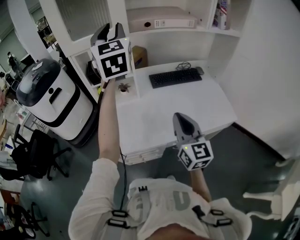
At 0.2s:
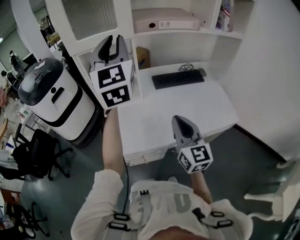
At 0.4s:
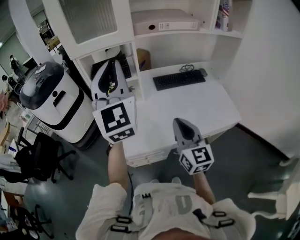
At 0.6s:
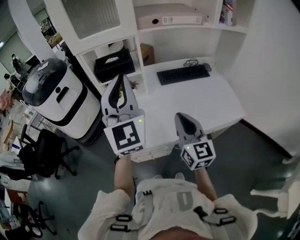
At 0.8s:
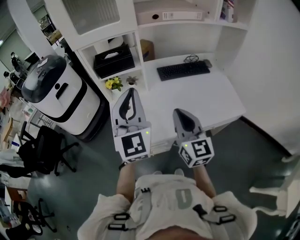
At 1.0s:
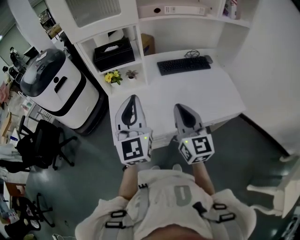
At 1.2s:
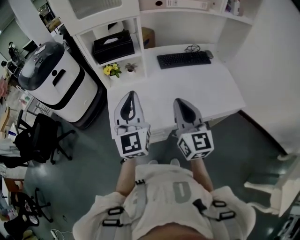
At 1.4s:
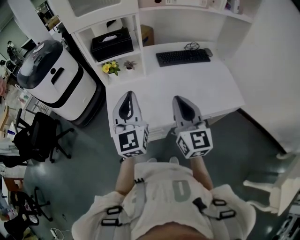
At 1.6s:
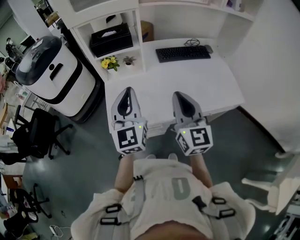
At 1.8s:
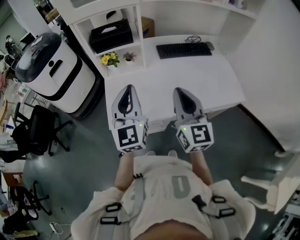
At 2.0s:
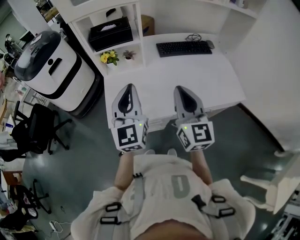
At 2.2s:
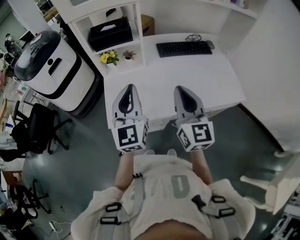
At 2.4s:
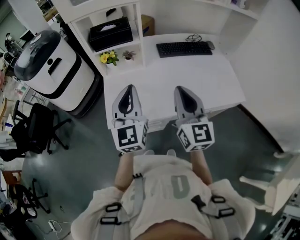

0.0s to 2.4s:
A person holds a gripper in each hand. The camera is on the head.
0.0s to 1.2s: The left gripper is displaced downward and backward by approximately 30 cm, and closes up.
1.2s to 2.4s: The grippers make only small movements.

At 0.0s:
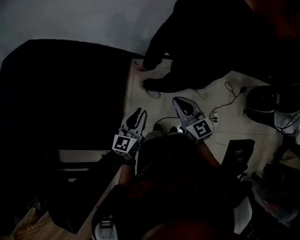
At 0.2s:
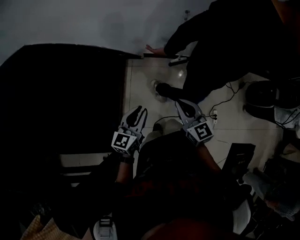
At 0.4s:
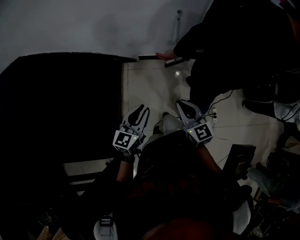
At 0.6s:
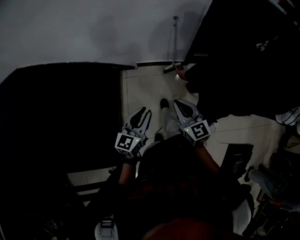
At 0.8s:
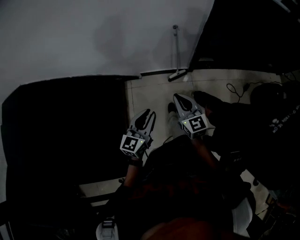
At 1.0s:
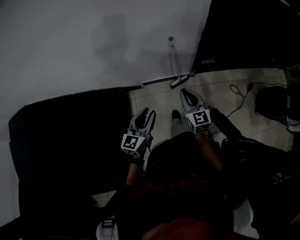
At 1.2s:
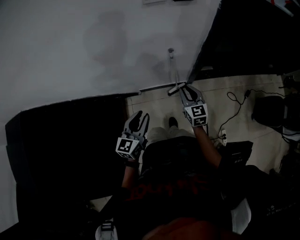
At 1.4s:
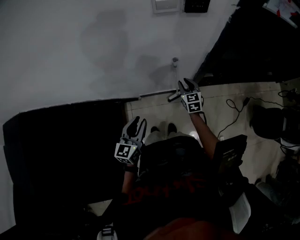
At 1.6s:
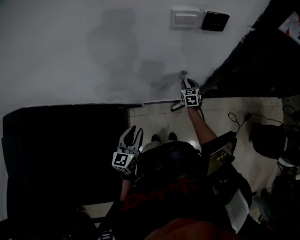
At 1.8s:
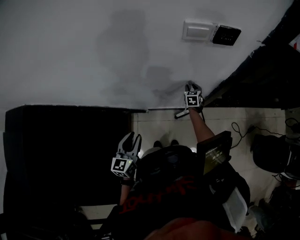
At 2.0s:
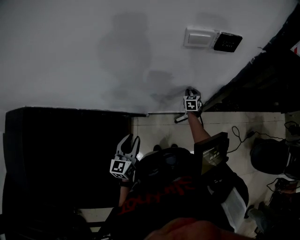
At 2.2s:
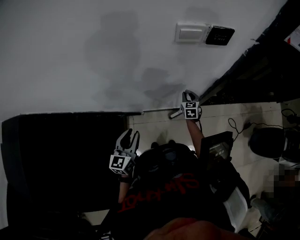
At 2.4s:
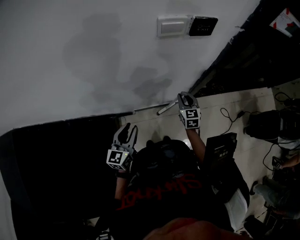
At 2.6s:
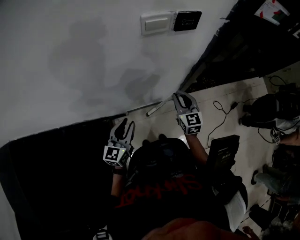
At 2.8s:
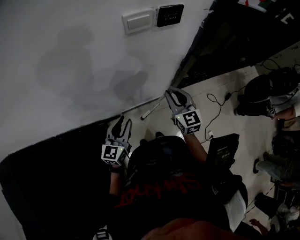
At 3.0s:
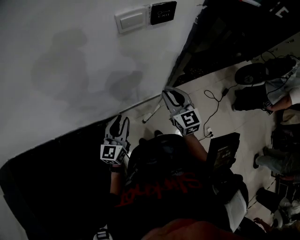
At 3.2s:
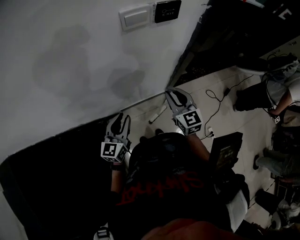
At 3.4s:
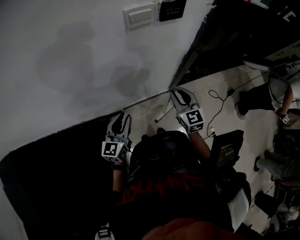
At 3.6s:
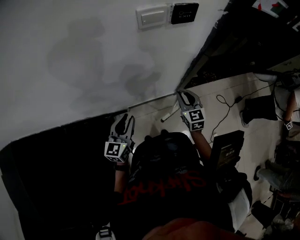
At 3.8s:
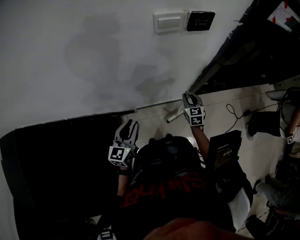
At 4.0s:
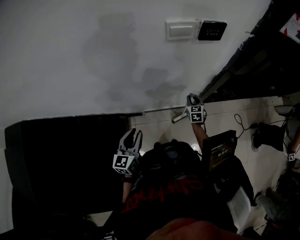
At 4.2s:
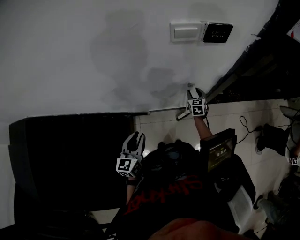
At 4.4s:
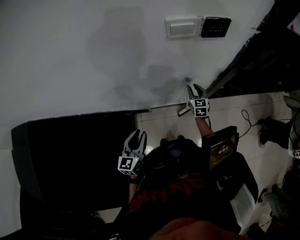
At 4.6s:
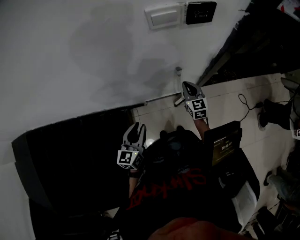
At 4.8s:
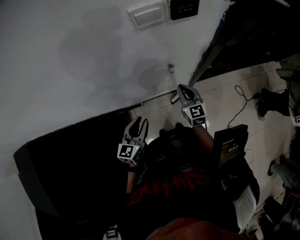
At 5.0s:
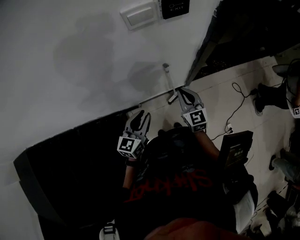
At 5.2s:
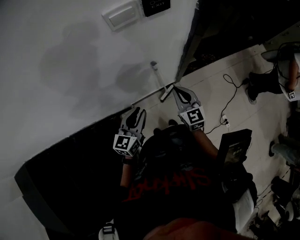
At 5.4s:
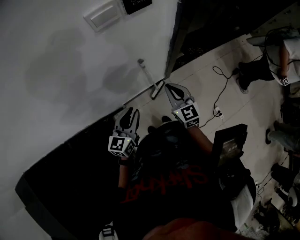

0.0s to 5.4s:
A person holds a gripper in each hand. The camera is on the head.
0.0s to 1.4s: Both grippers are carried forward, some 50 cm. The right gripper turns by about 30 degrees, and opens up.
1.4s to 2.8s: The left gripper is displaced forward by roughly 10 cm; the right gripper goes about 15 cm upward.
2.8s to 4.0s: The right gripper shifts about 25 cm downward, and swivels some 20 degrees. The left gripper heads backward, covering about 5 cm.
4.0s to 5.4s: The left gripper shifts approximately 10 cm to the right and forward, and rotates roughly 30 degrees. The right gripper shifts about 20 cm upward and backward, changes its angle by about 20 degrees, and closes up.

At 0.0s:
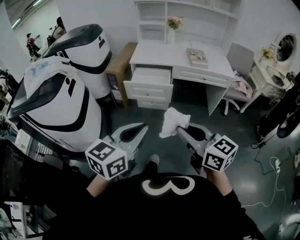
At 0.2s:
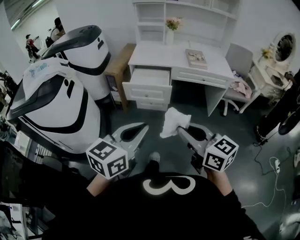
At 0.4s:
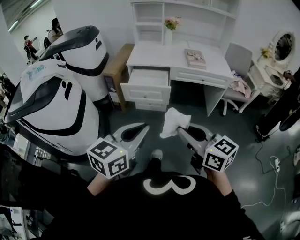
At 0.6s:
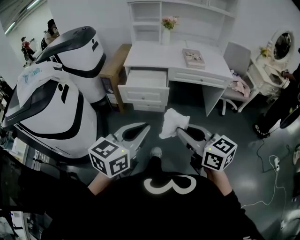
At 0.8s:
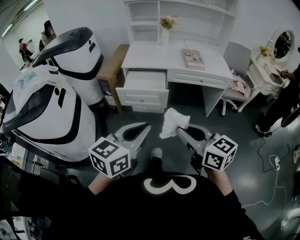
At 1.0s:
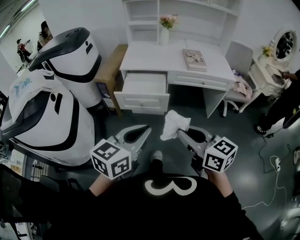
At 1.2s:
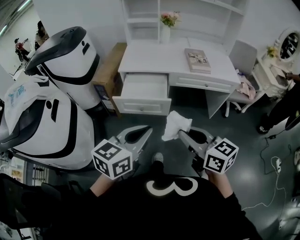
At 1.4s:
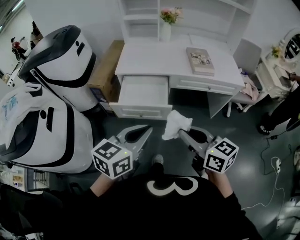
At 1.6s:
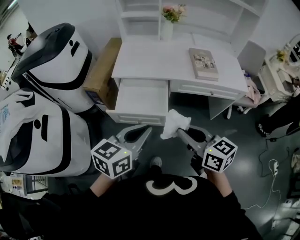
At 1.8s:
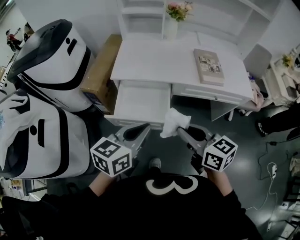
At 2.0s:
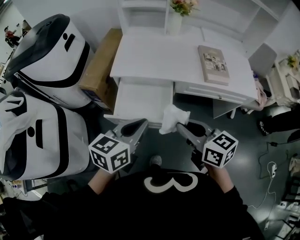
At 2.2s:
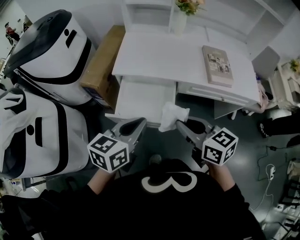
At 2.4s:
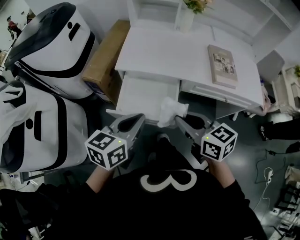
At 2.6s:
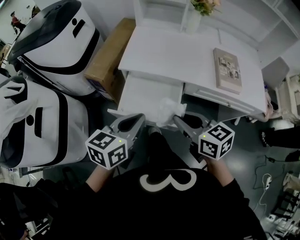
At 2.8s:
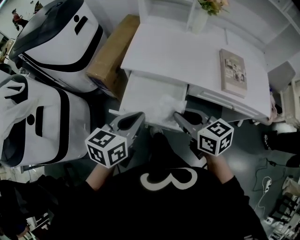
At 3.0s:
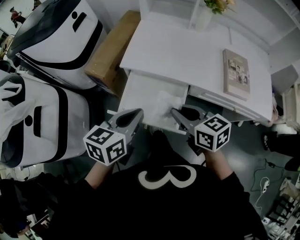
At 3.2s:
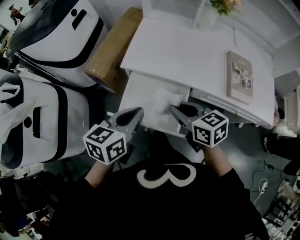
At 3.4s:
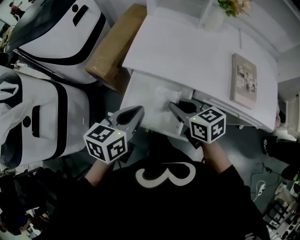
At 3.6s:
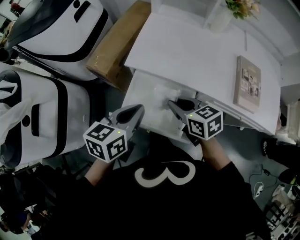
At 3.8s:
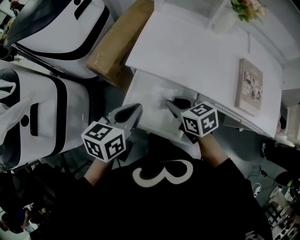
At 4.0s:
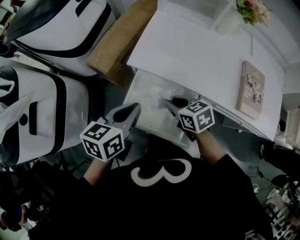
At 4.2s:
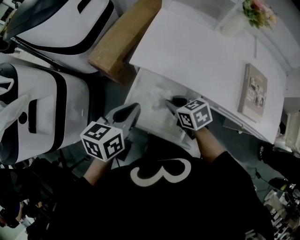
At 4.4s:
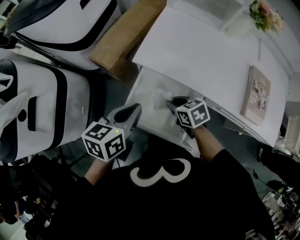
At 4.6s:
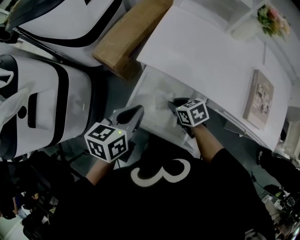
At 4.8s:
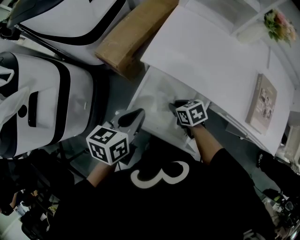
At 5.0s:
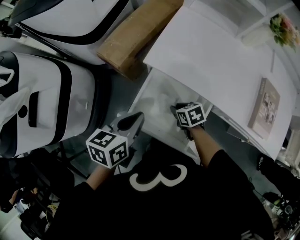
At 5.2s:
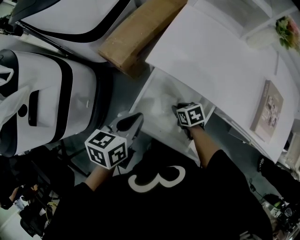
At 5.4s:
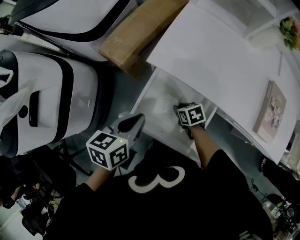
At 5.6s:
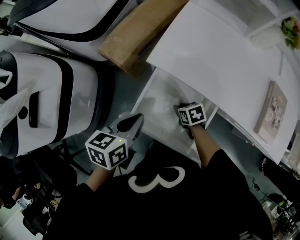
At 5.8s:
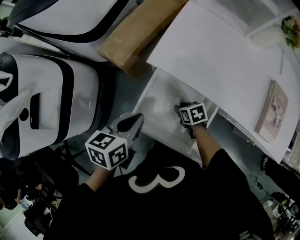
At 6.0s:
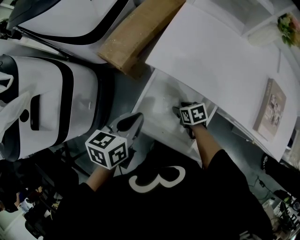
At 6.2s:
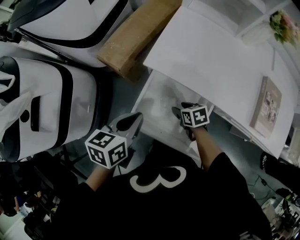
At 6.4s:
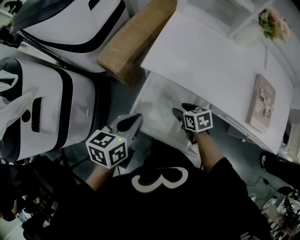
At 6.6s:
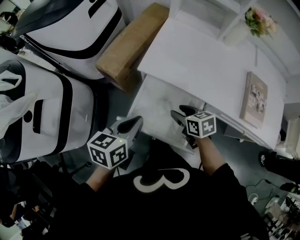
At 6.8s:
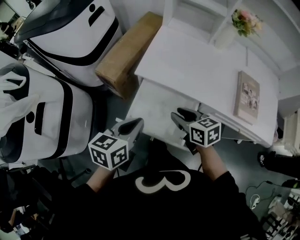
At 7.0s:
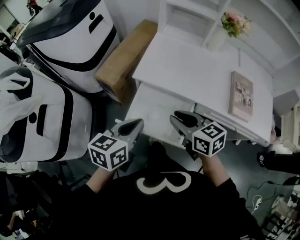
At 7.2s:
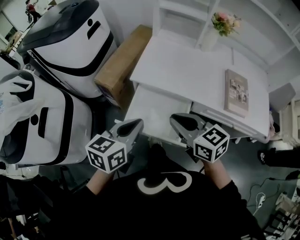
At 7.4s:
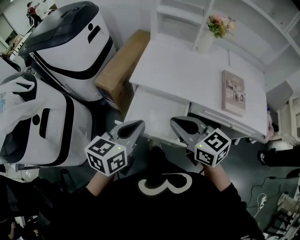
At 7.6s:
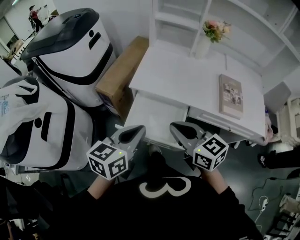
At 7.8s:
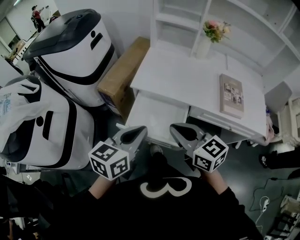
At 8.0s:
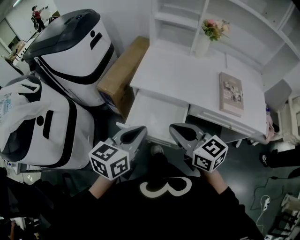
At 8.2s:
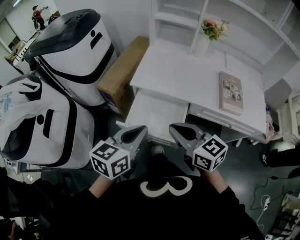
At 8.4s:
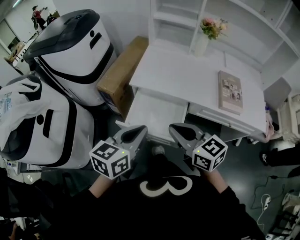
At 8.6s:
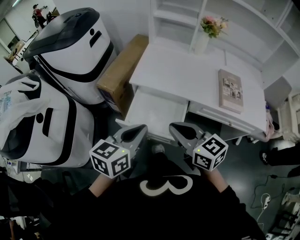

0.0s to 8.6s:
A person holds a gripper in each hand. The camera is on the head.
0.0s to 1.4s: Both grippers travel together forward, roughly 25 cm.
1.4s to 2.8s: Both grippers travel together forward, some 25 cm.
2.8s to 4.4s: The left gripper travels forward and downward by about 15 cm, while the right gripper is displaced downward and forward by about 25 cm, and changes its angle by roughly 30 degrees.
4.4s to 5.8s: The left gripper heads downward, covering approximately 5 cm. The right gripper shifts some 15 cm downward.
5.8s to 7.2s: The right gripper travels upward by some 35 cm, tilts its fingers approximately 40 degrees upward, and opens and closes again. The left gripper shifts some 15 cm upward and backward, and changes its angle by some 20 degrees.
7.2s to 8.6s: The two grippers go approximately 5 cm backward.

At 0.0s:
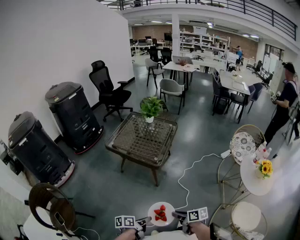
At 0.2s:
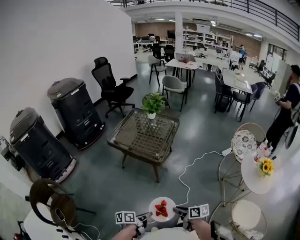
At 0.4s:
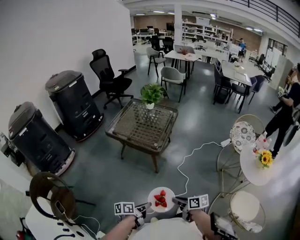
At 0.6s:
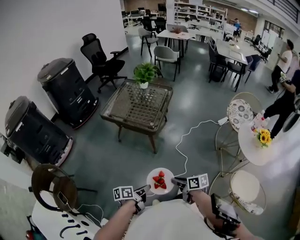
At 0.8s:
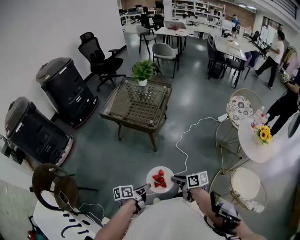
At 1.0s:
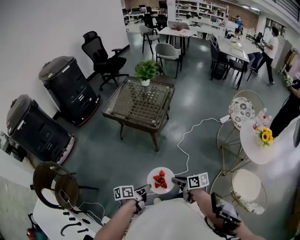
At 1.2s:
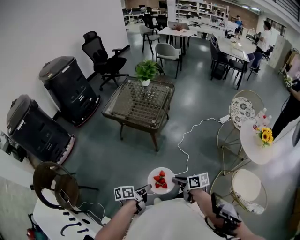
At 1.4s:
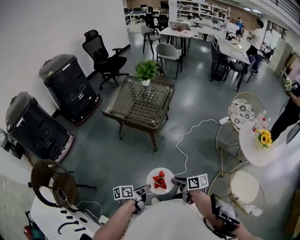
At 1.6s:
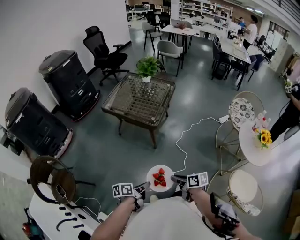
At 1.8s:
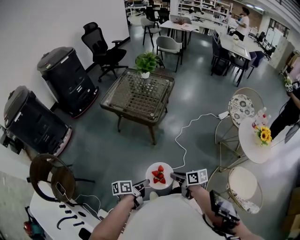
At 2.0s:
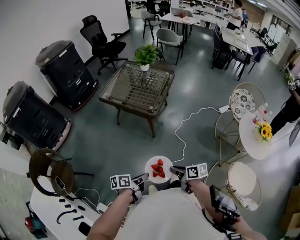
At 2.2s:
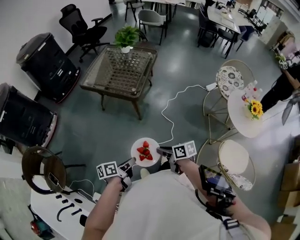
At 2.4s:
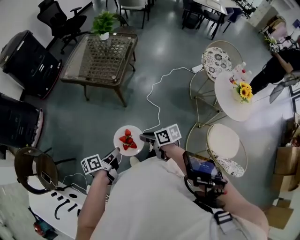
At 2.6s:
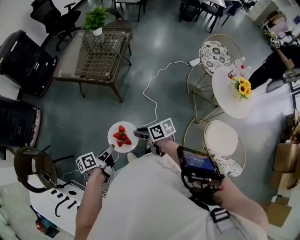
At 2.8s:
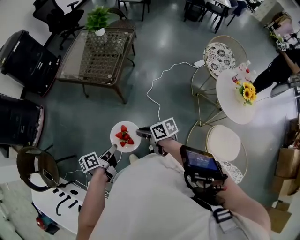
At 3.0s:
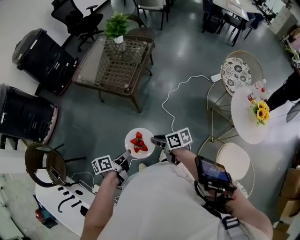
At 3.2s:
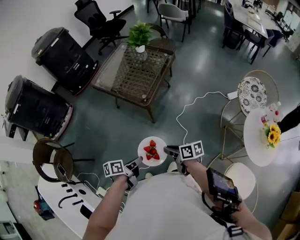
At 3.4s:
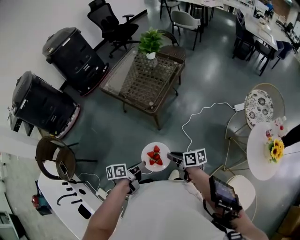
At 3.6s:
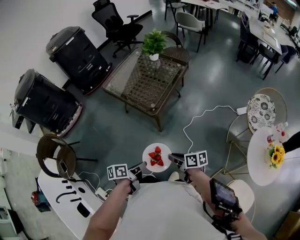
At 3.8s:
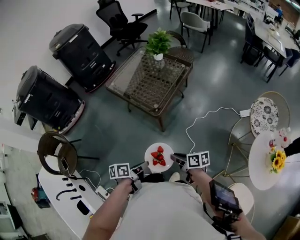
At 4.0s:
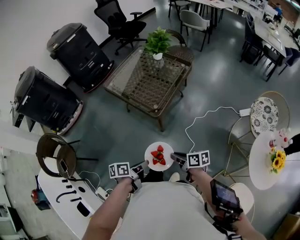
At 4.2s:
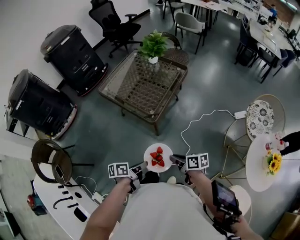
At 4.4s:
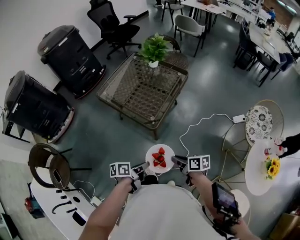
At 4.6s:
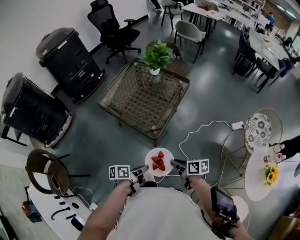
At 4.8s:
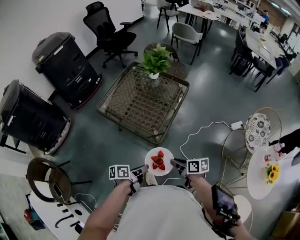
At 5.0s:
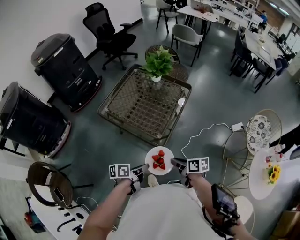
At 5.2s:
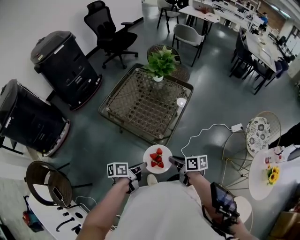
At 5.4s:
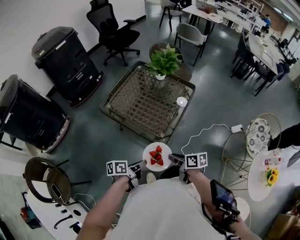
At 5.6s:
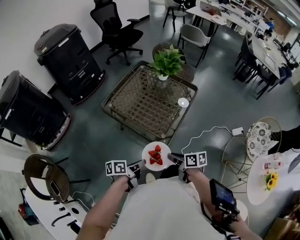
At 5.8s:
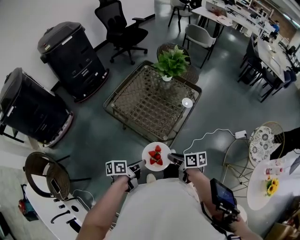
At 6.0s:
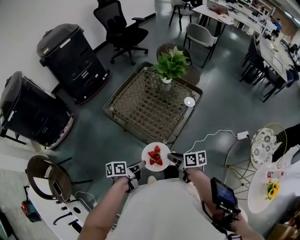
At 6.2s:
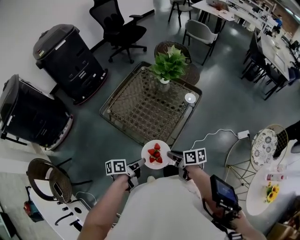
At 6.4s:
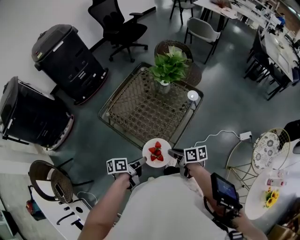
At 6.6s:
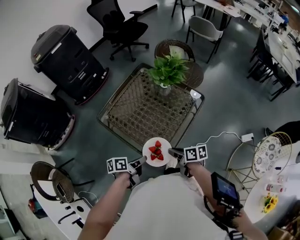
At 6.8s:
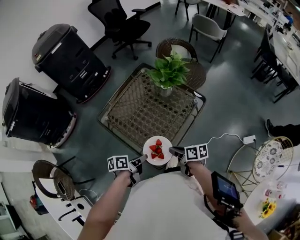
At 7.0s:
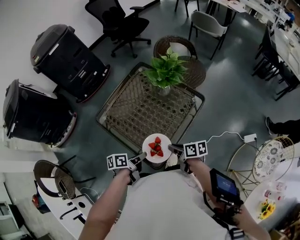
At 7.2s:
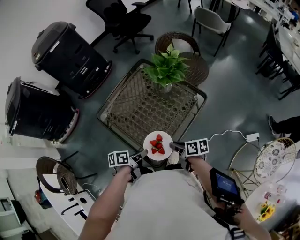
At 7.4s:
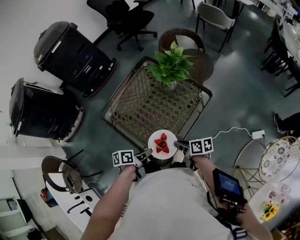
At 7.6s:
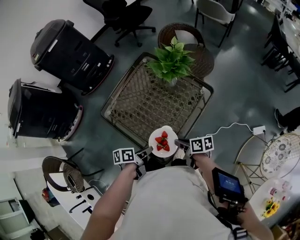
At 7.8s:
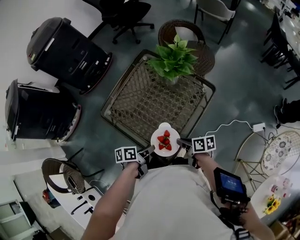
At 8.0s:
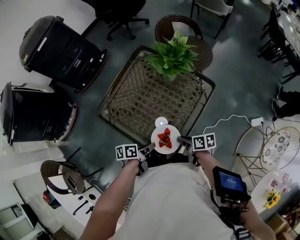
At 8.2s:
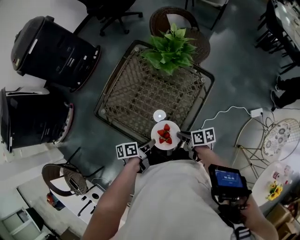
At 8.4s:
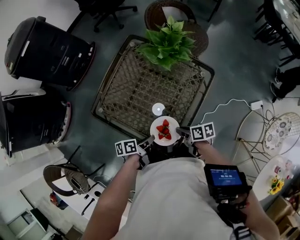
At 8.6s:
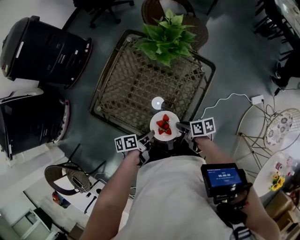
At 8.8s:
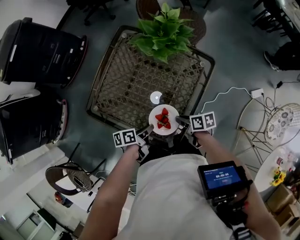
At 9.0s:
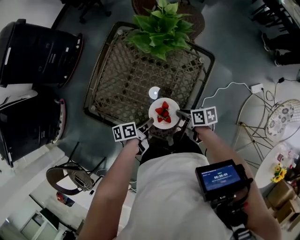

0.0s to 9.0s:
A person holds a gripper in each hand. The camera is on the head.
1.6s to 3.0s: The right gripper shifts by about 15 cm.
3.0s to 4.4s: The right gripper ends up approximately 15 cm from where it was.
4.4s to 6.0s: The right gripper moves roughly 20 cm.
6.0s to 7.6s: The right gripper moves about 20 cm.
7.6s to 9.0s: The right gripper goes approximately 10 cm downward.
